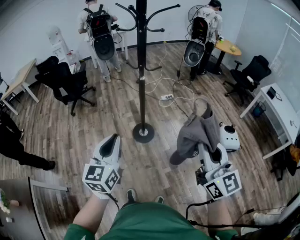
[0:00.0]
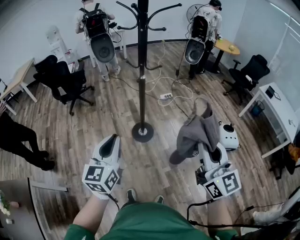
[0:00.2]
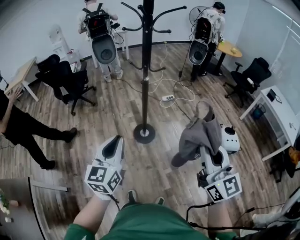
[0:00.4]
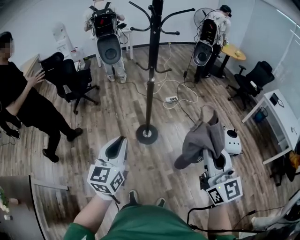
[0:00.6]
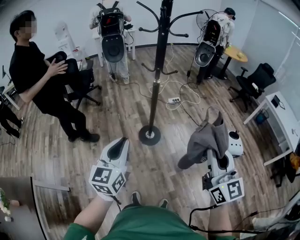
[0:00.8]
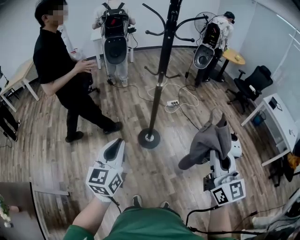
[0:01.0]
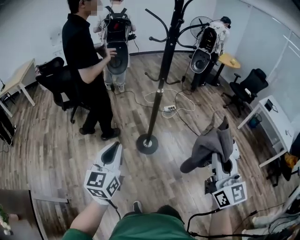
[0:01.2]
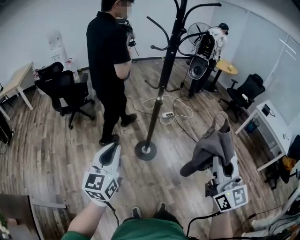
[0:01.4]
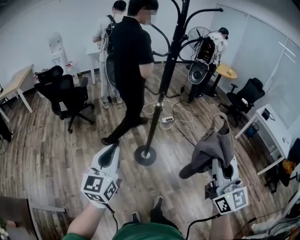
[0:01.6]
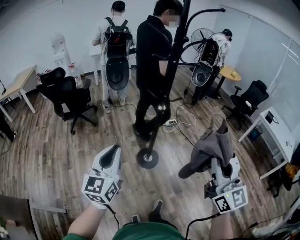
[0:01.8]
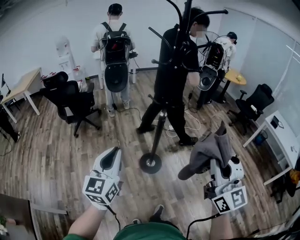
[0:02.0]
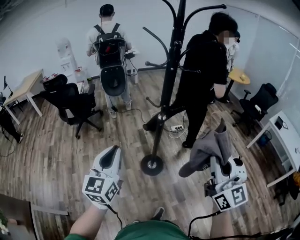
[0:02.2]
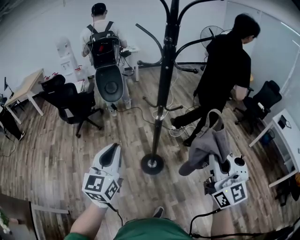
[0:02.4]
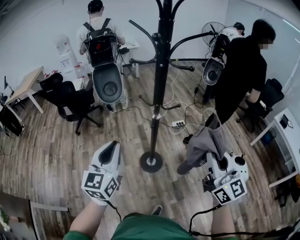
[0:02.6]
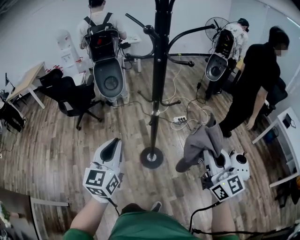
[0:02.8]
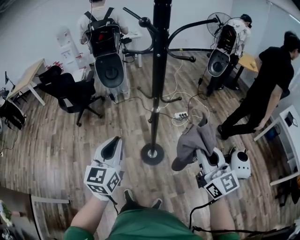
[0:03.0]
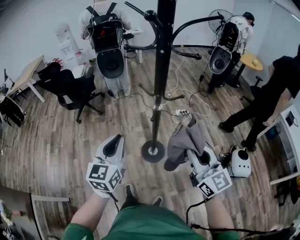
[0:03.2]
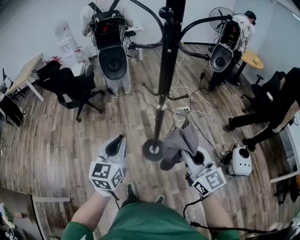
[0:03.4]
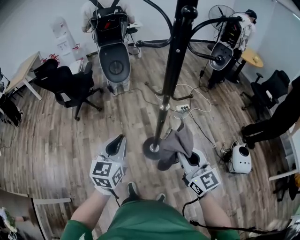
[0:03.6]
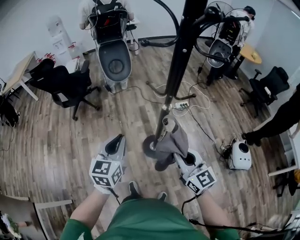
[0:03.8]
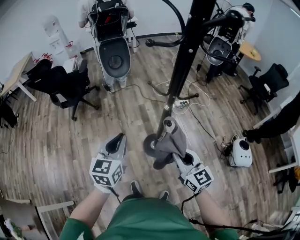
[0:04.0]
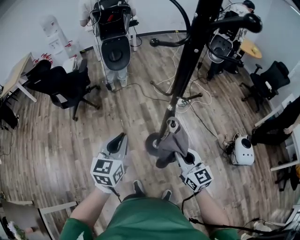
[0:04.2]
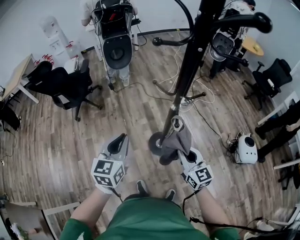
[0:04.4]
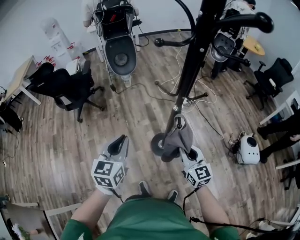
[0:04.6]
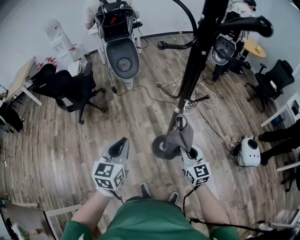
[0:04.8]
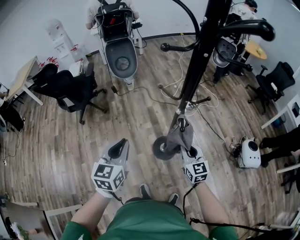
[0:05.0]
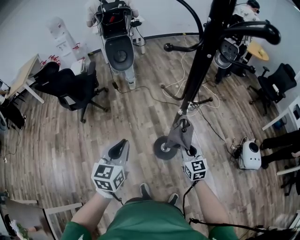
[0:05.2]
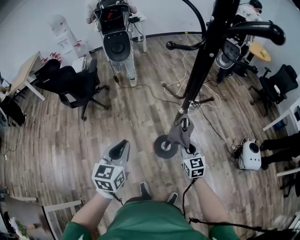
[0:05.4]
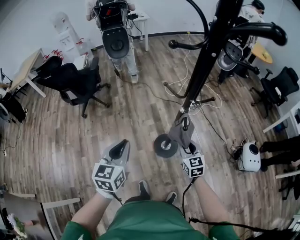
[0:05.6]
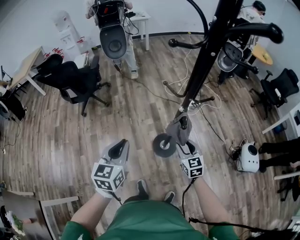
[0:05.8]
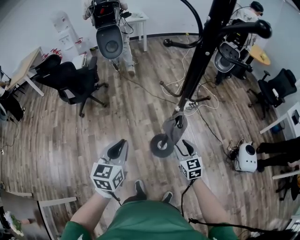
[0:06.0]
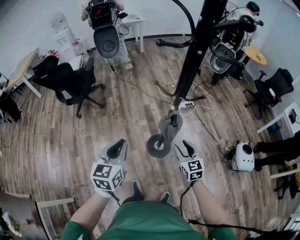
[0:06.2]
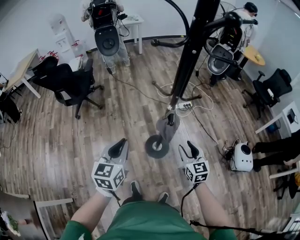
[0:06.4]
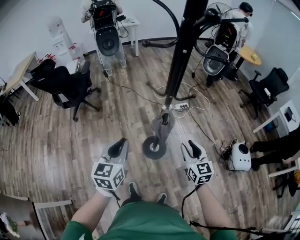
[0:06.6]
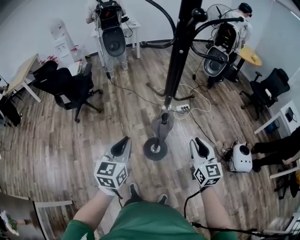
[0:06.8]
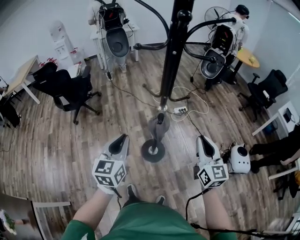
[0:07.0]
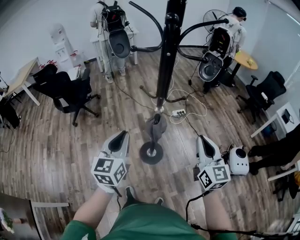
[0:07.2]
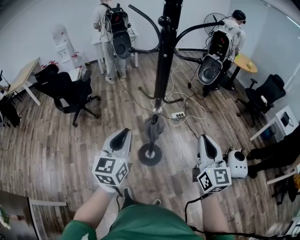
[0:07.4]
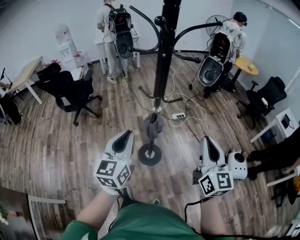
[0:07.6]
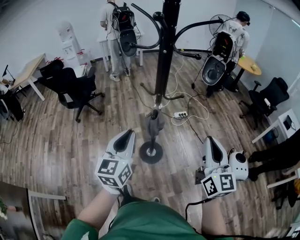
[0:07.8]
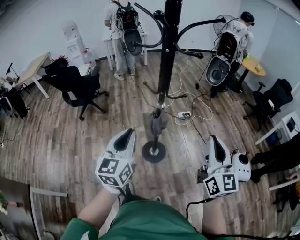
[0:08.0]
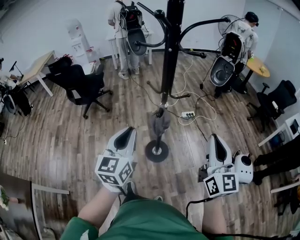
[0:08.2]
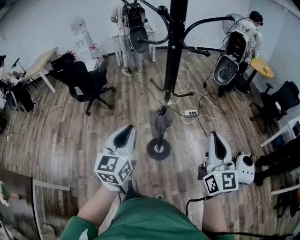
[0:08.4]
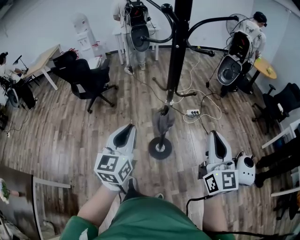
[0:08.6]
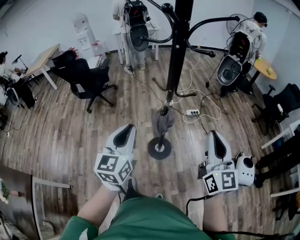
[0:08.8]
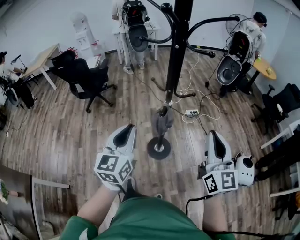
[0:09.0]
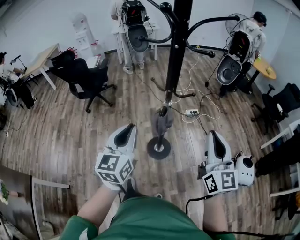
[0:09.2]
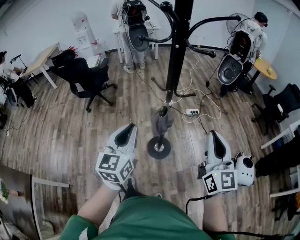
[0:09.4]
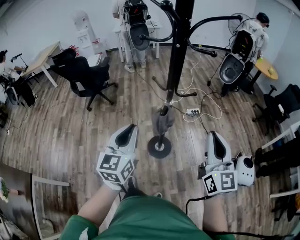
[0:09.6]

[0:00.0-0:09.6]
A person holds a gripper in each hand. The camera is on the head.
0:00.0 to 0:01.6: The left gripper travels to the left and forward by roughly 20 cm. The right gripper shifts approximately 15 cm to the left.
0:01.6 to 0:03.2: The left gripper is displaced forward and to the right by roughly 25 cm; the right gripper shifts about 30 cm forward and downward, and turns by approximately 20 degrees.
0:03.2 to 0:04.8: The left gripper shifts approximately 15 cm to the left, forward and downward; the right gripper goes approximately 25 cm downward, forward and to the left.
0:04.8 to 0:06.4: The right gripper heads to the right, covering some 5 cm, and opens.
0:06.4 to 0:08.0: The left gripper shifts some 15 cm to the right, upward and backward. Meanwhile the right gripper moves upward, to the right and backward, some 30 cm, swivels approximately 30 degrees, and closes.
0:08.0 to 0:09.6: The grippers stay close to where they were, moving slightly.

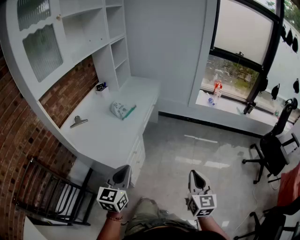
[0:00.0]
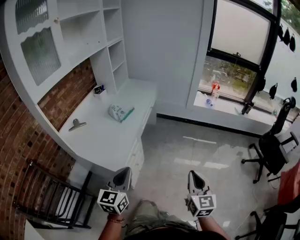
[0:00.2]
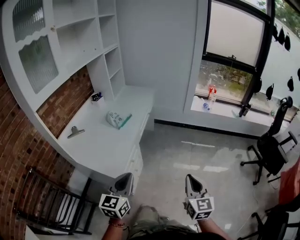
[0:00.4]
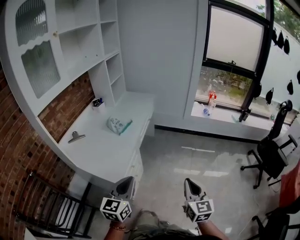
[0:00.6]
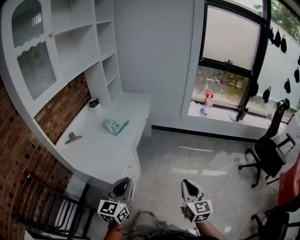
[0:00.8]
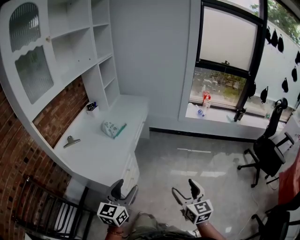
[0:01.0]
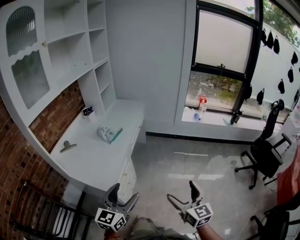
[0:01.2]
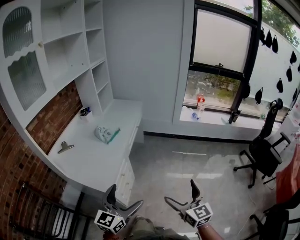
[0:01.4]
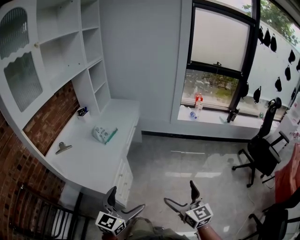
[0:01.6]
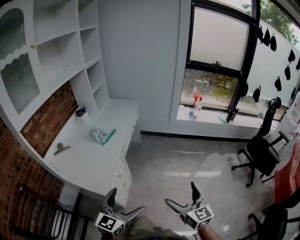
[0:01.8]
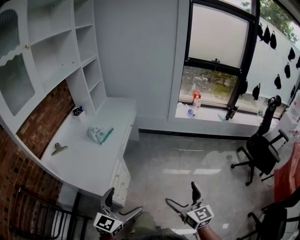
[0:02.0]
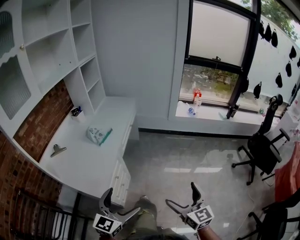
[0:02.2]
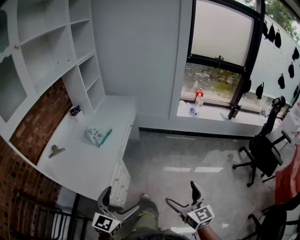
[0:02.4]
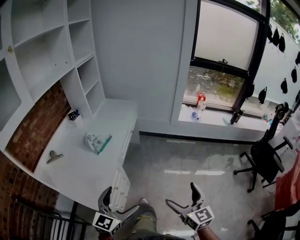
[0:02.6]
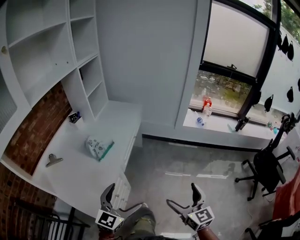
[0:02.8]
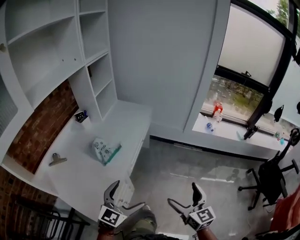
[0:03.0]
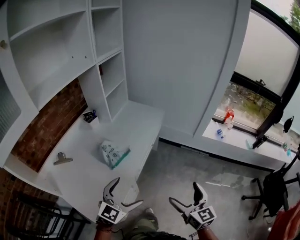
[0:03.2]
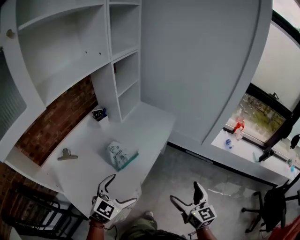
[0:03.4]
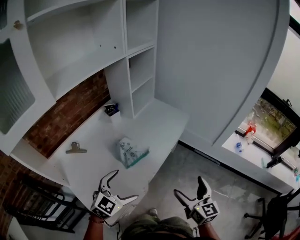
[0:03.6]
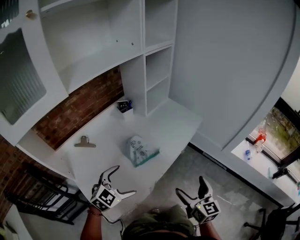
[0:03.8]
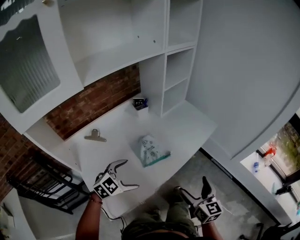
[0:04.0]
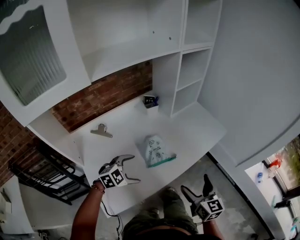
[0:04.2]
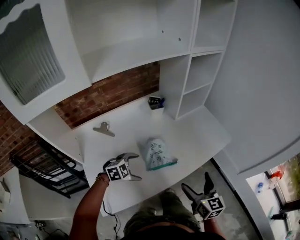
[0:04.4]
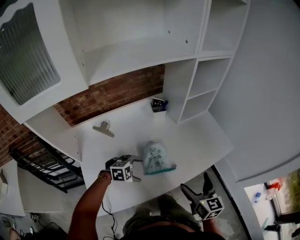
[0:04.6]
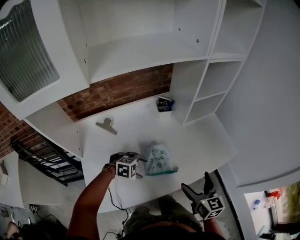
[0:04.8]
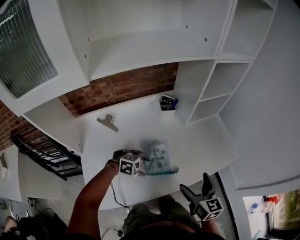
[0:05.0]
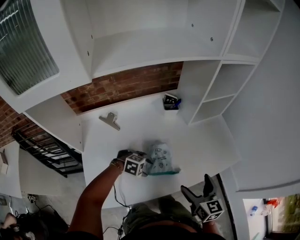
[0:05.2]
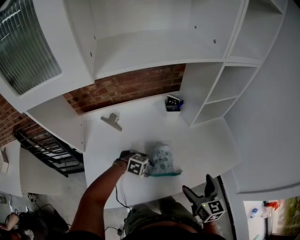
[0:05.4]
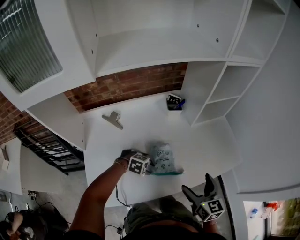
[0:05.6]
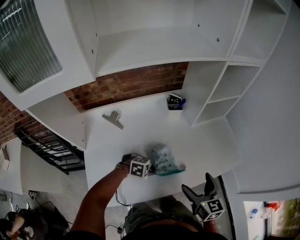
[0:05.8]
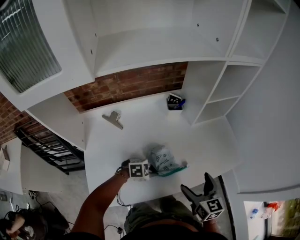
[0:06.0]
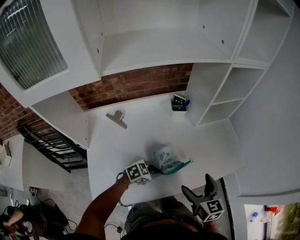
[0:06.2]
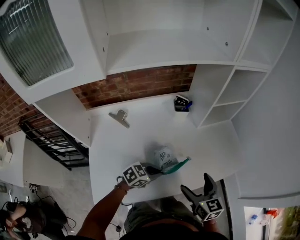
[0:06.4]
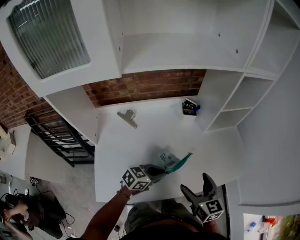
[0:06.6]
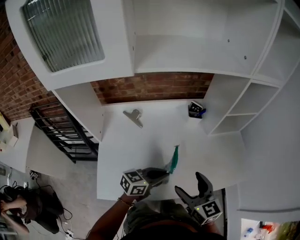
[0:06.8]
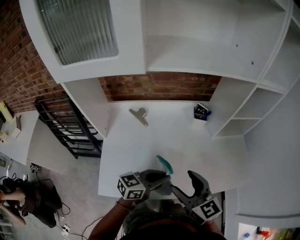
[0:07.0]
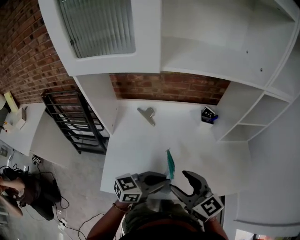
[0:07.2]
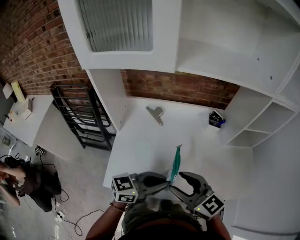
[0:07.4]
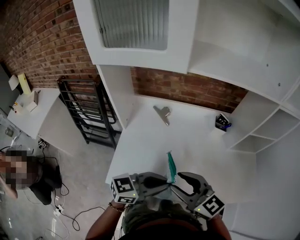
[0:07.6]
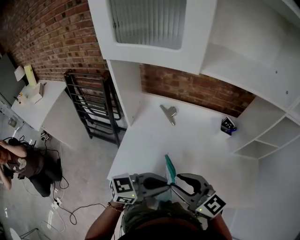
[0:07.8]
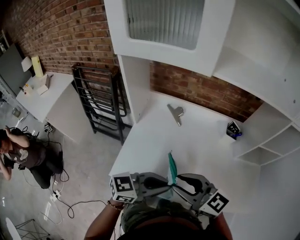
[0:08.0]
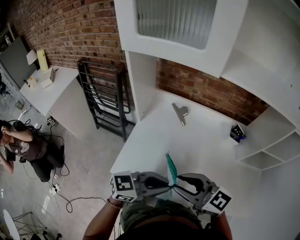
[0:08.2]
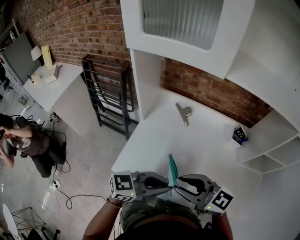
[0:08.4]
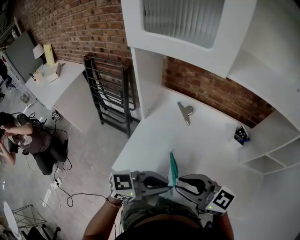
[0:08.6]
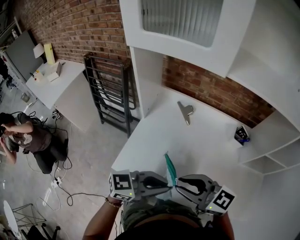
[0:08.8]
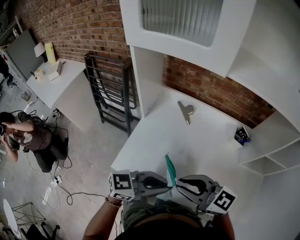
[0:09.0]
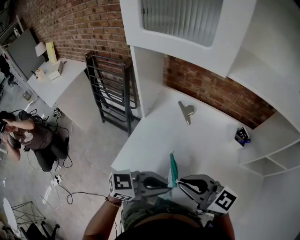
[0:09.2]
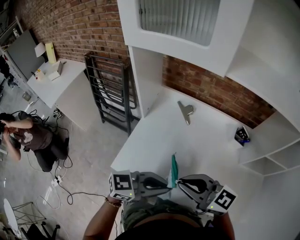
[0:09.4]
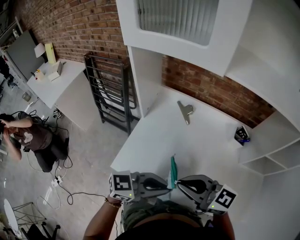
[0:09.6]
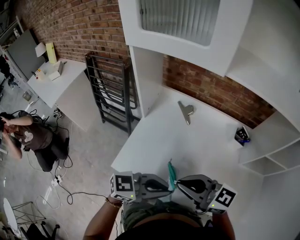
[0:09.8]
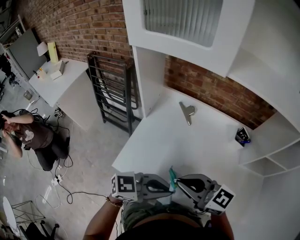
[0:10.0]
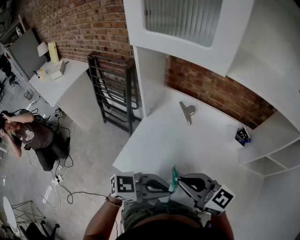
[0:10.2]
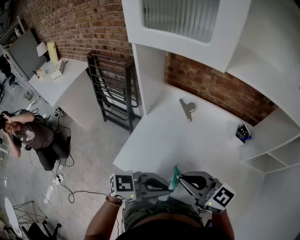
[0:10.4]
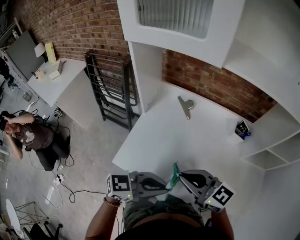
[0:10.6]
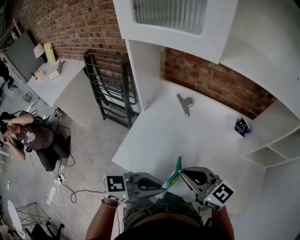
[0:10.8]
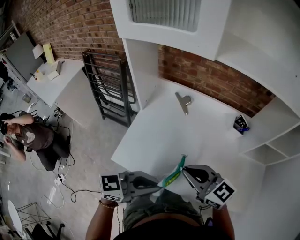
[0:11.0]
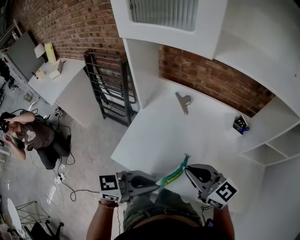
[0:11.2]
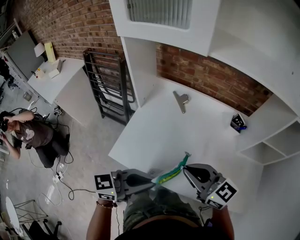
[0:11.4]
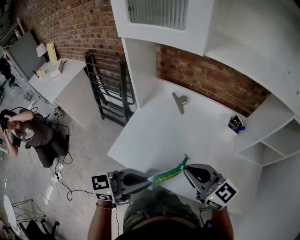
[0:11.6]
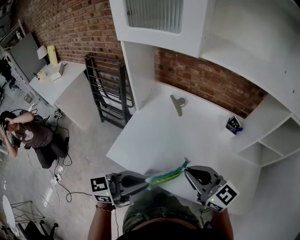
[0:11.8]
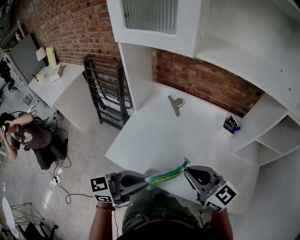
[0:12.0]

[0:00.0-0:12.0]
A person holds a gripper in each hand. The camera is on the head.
0:00.0 to 0:01.6: The left gripper heads to the right, covering about 10 cm, and opens up, while the right gripper opens up.
0:01.6 to 0:03.0: The two grippers go some 30 cm forward.
0:03.0 to 0:04.4: The right gripper travels forward and to the left by some 35 cm, and rotates roughly 40 degrees. The left gripper is displaced to the left, forward and downward by approximately 35 cm, and angles its fingers downward, by roughly 40 degrees.
0:04.4 to 0:06.0: The right gripper moves about 10 cm. Meanwhile the left gripper changes place by approximately 10 cm, and closes its fingers.
0:06.0 to 0:07.6: The left gripper moves upward, roughly 25 cm, and tilts its fingers roughly 50 degrees upward. The right gripper shifts by approximately 25 cm, turns by roughly 60 degrees, and closes up.
0:07.6 to 0:09.0: The right gripper turns by roughly 30 degrees.
0:09.0 to 0:10.4: The grippers stay close to where they were, moving slightly.
0:10.4 to 0:12.0: The left gripper rotates roughly 30 degrees; the right gripper moves roughly 10 cm.

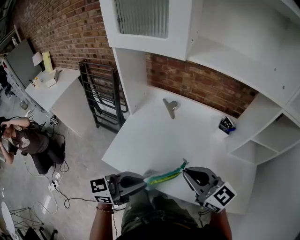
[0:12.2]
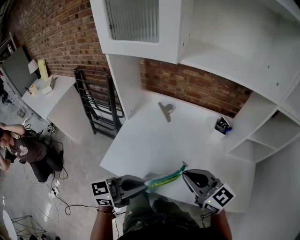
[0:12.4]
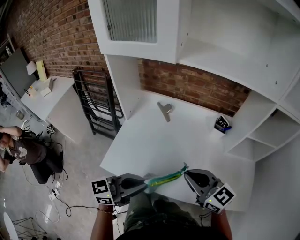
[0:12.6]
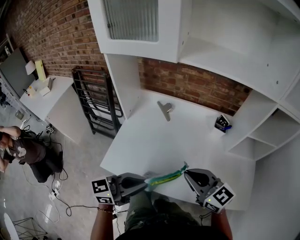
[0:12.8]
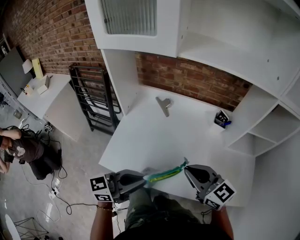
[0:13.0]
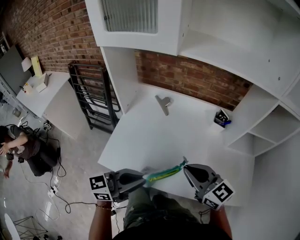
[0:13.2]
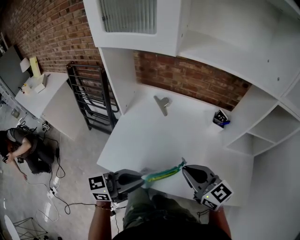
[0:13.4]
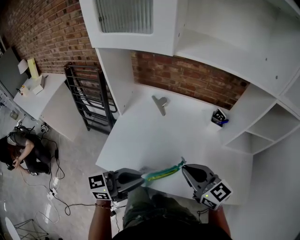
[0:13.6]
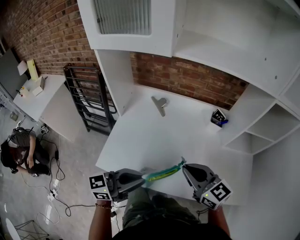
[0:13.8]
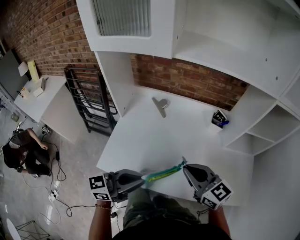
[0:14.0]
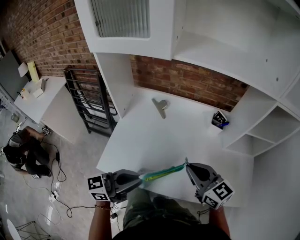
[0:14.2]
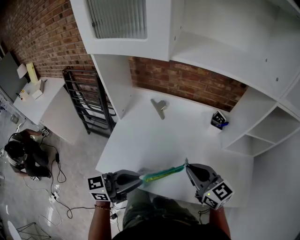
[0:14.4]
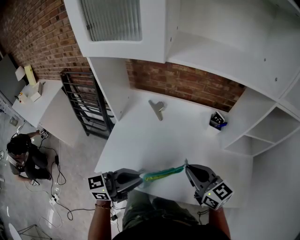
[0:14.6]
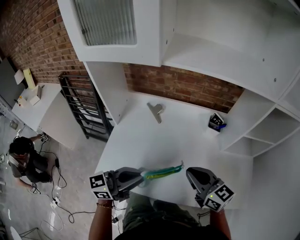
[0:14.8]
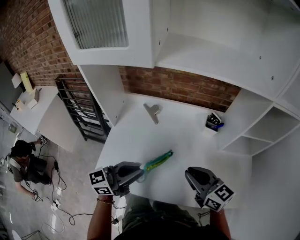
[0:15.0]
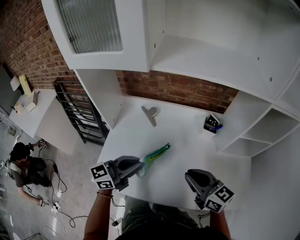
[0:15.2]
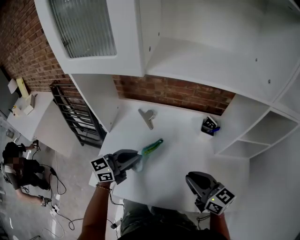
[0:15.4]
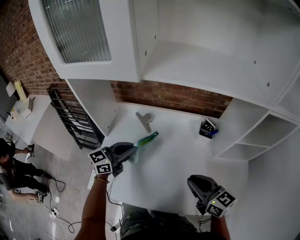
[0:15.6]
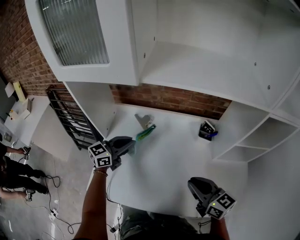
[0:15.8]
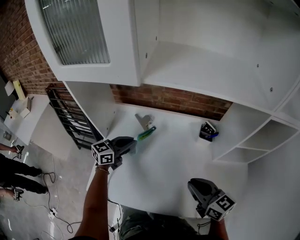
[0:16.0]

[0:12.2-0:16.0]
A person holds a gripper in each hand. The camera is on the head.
0:12.2 to 0:13.4: There are only small adjustments of the grippers.
0:13.4 to 0:14.8: The right gripper moves about 5 cm. The left gripper moves forward, approximately 5 cm.
0:14.8 to 0:16.0: The right gripper shifts by roughly 5 cm, while the left gripper moves forward, about 25 cm, and turns by about 20 degrees.
